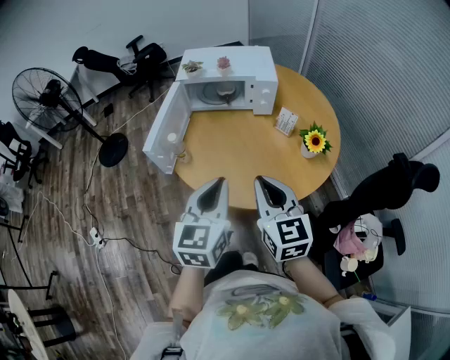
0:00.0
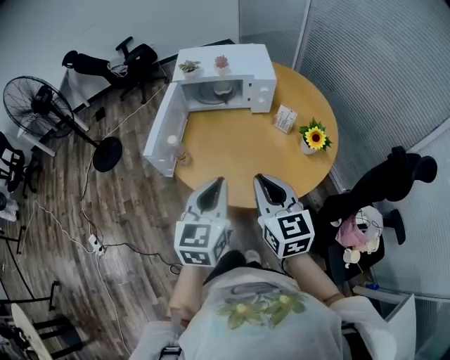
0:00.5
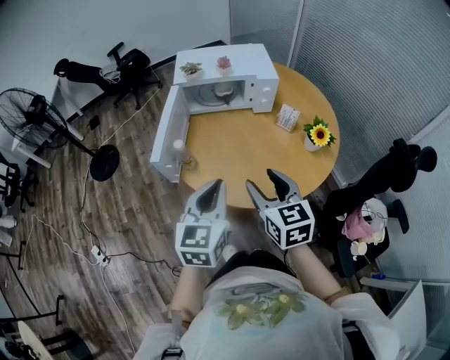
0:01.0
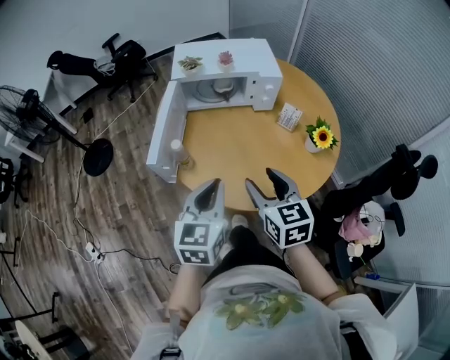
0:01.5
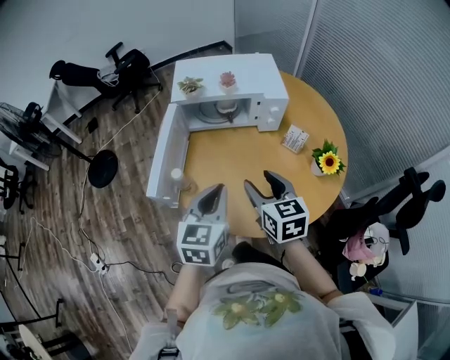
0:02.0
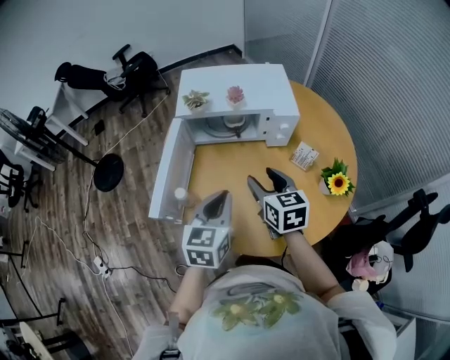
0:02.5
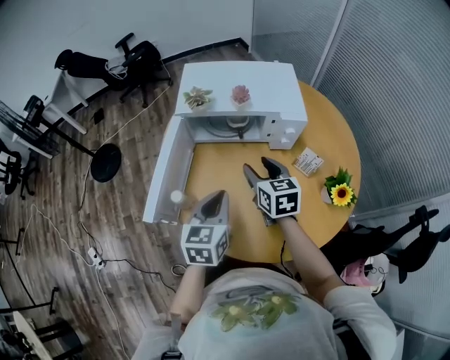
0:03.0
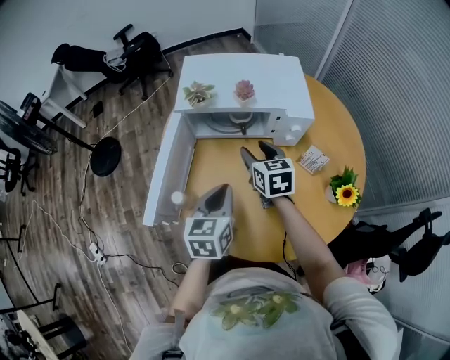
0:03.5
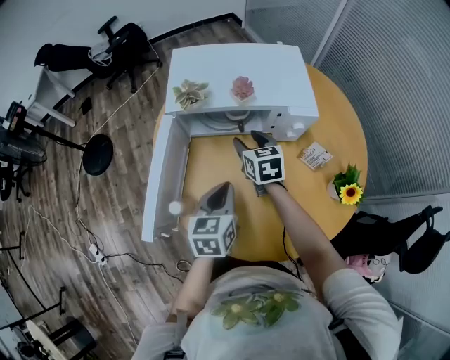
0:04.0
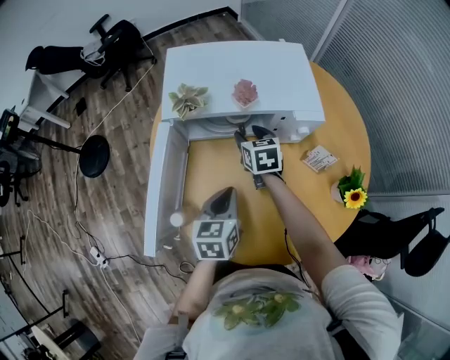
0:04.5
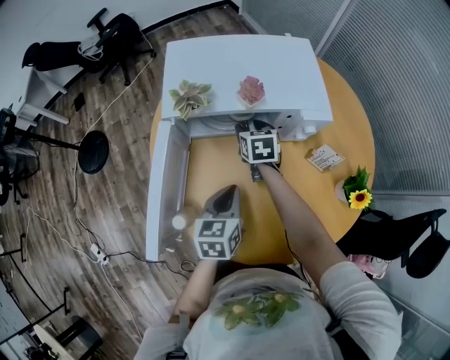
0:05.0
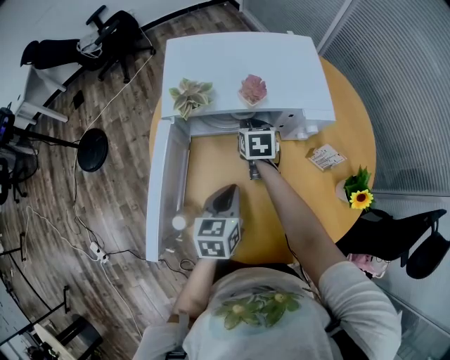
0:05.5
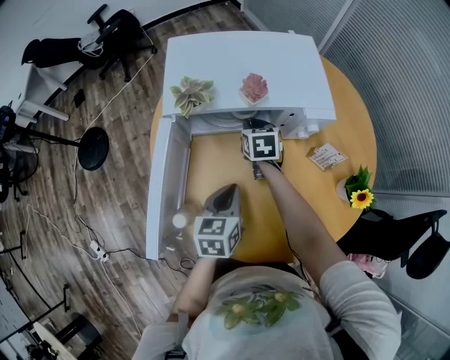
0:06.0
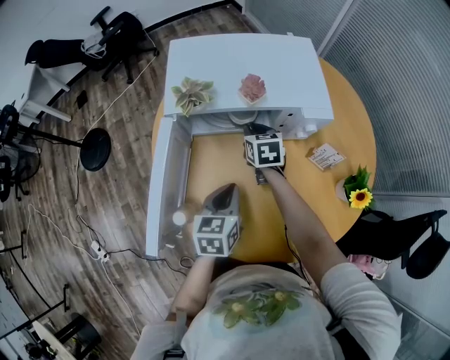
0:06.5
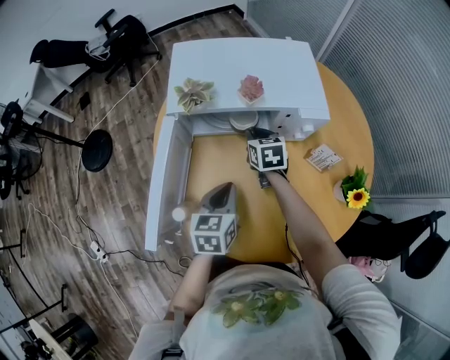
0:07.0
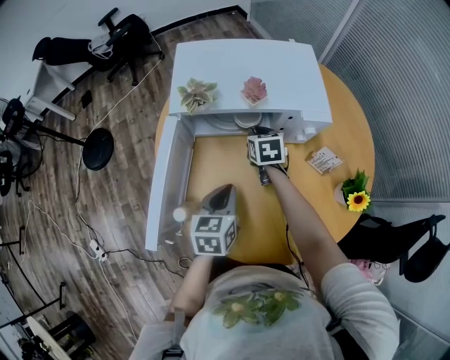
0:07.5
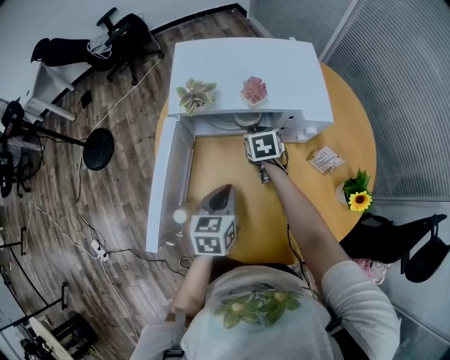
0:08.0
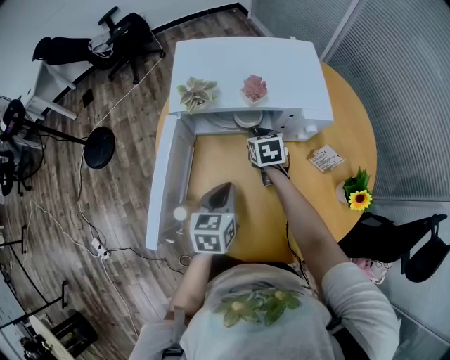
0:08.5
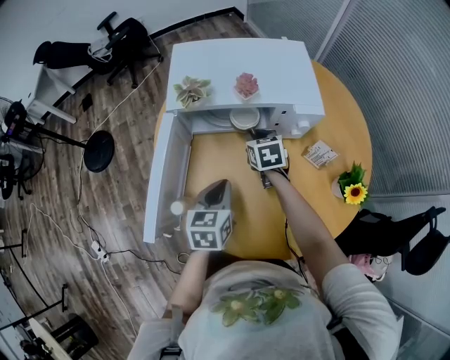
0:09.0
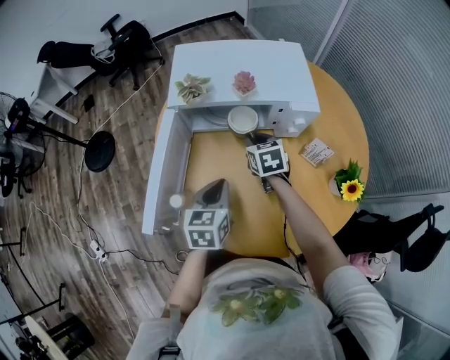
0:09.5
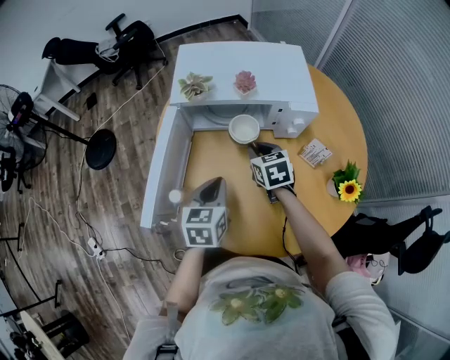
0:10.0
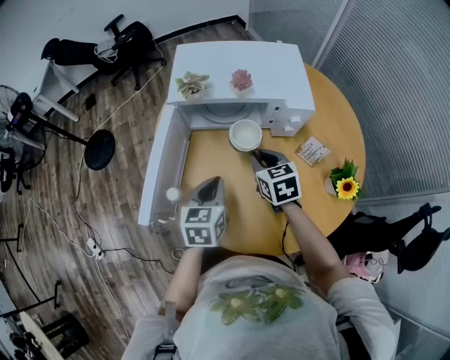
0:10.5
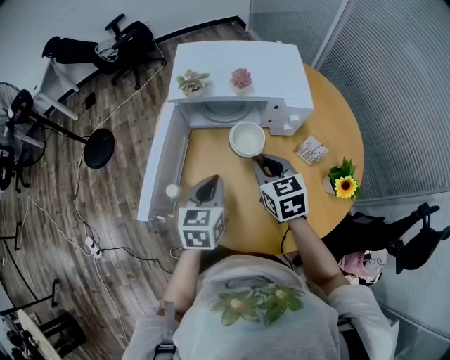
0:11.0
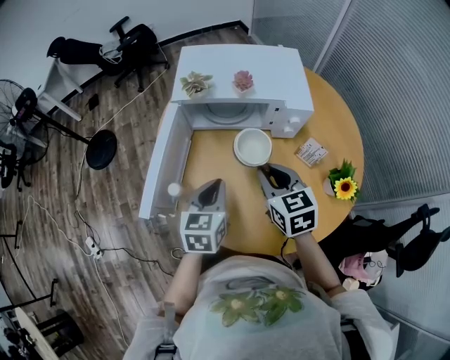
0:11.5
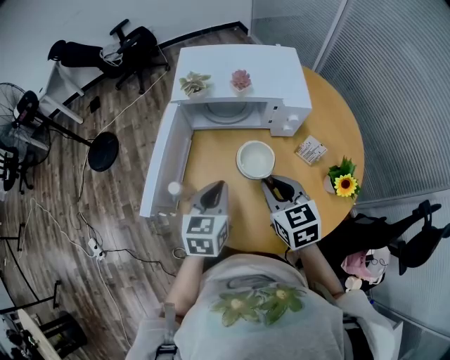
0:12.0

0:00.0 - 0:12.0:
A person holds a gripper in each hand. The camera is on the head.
0:00.0 - 0:02.0: The left gripper shifts approximately 15 cm forward and to the left. The right gripper heads forward and downward, covering roughly 20 cm, and opens its fingers.
0:02.0 - 0:04.0: The left gripper travels forward and downward by about 20 cm; the right gripper moves forward and downward, some 30 cm.
0:04.0 - 0:06.0: The left gripper goes approximately 5 cm downward. The right gripper heads forward and downward, covering approximately 10 cm, and closes up.
0:06.0 - 0:08.0: The grippers stay close to where they were, moving slightly.
0:08.0 - 0:10.0: The right gripper shifts approximately 15 cm backward and upward.
0:10.0 - 0:12.0: The left gripper shifts by roughly 5 cm. Meanwhile the right gripper is displaced backward and upward by some 20 cm.

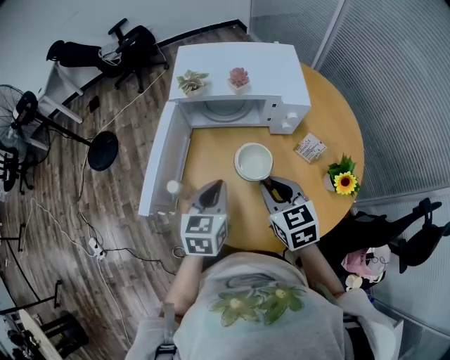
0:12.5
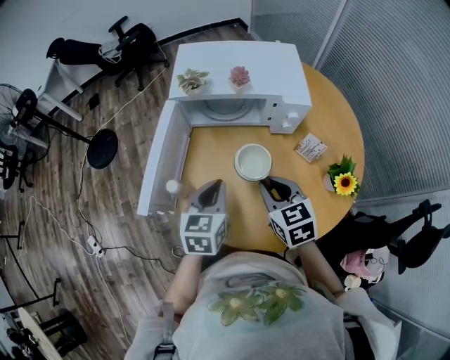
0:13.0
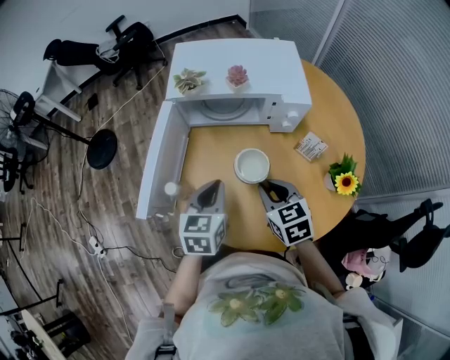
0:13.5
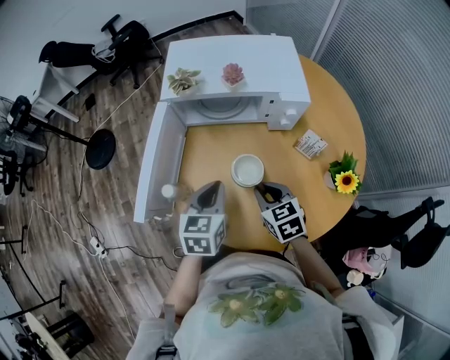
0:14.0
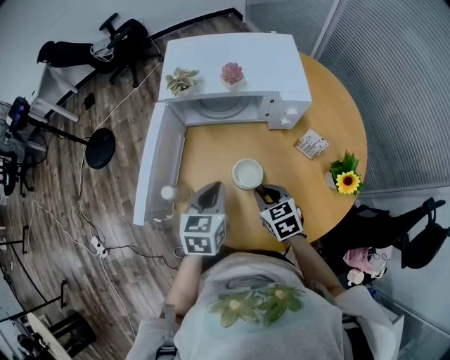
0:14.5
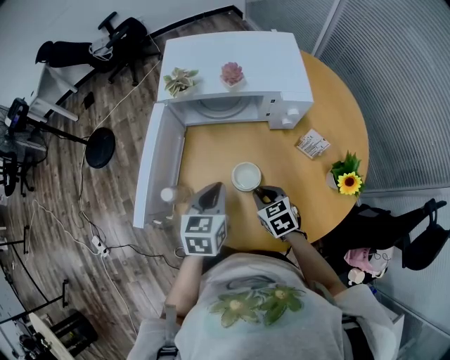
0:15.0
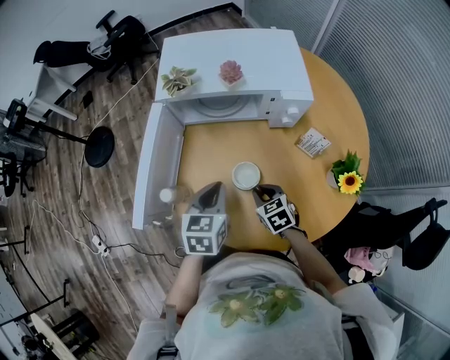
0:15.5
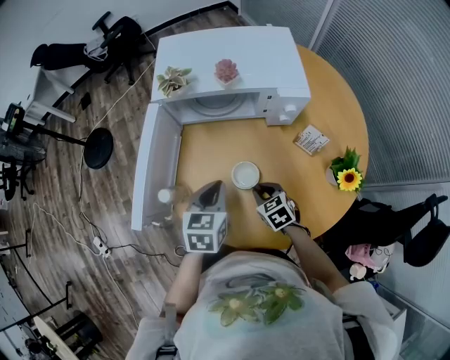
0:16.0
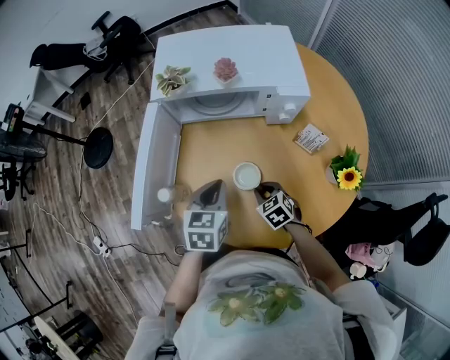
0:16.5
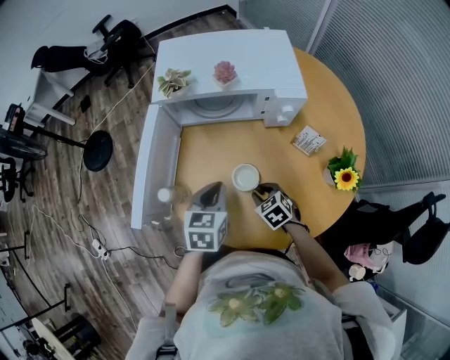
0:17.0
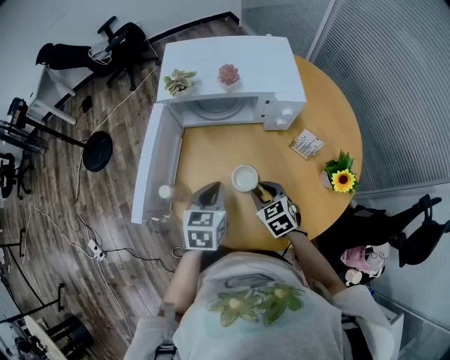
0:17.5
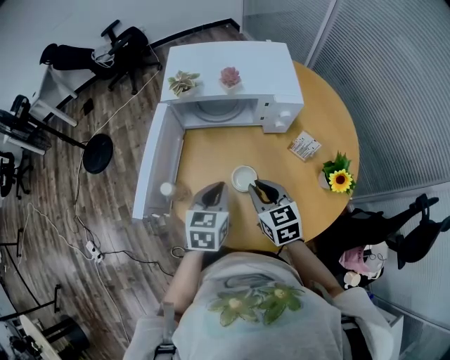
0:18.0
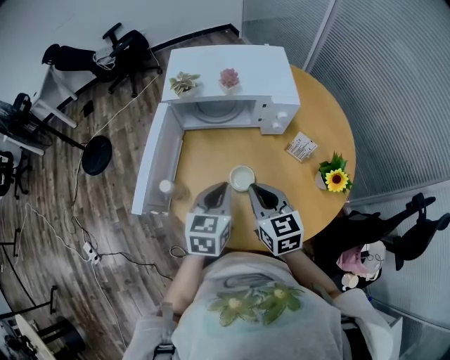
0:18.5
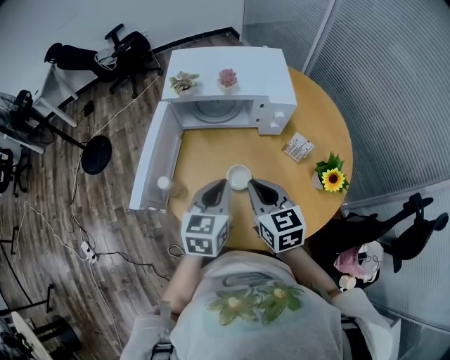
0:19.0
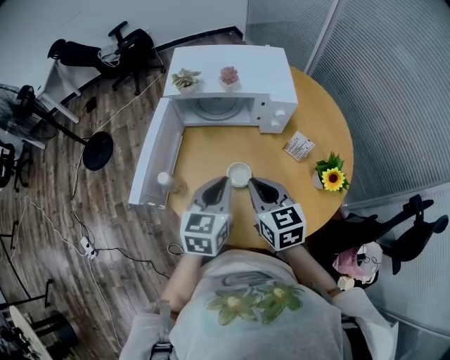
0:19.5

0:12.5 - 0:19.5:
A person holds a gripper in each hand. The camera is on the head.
0:12.5 - 0:14.5: The right gripper is displaced downward by roughly 15 cm.
0:14.5 - 0:16.0: The right gripper heads downward, covering some 10 cm.
0:16.0 - 0:17.5: The right gripper moves upward, about 5 cm.
0:17.5 - 0:19.5: The right gripper travels upward by approximately 15 cm, swivels some 20 degrees, and closes, while the left gripper is displaced upward by some 10 cm.

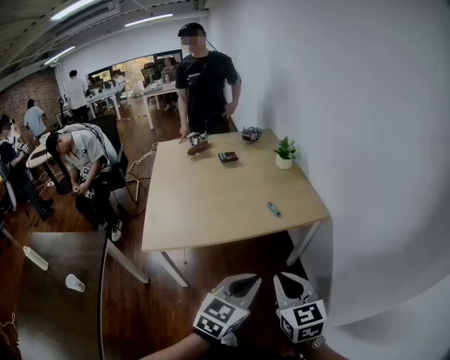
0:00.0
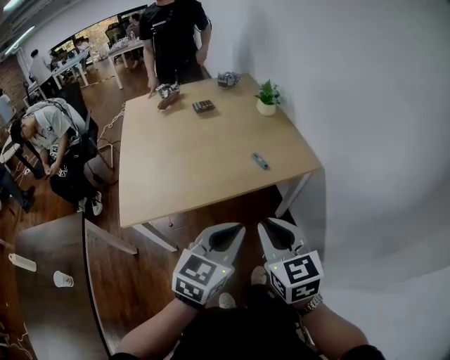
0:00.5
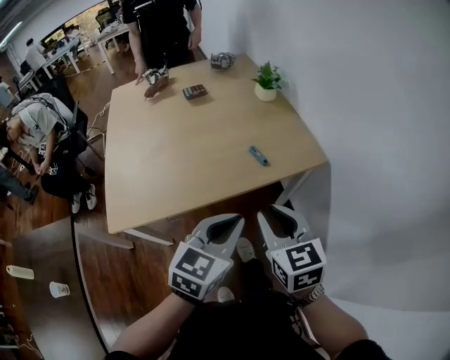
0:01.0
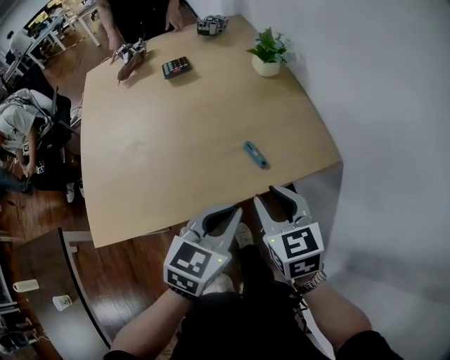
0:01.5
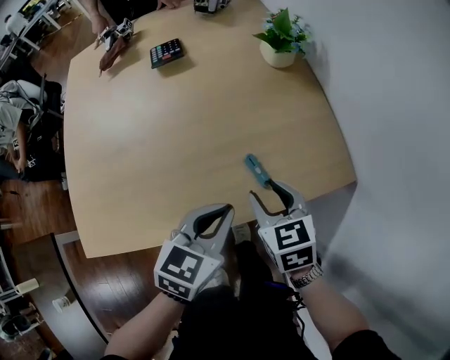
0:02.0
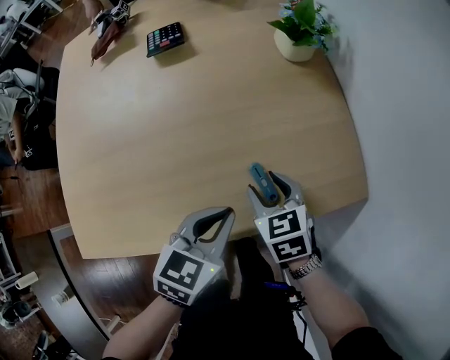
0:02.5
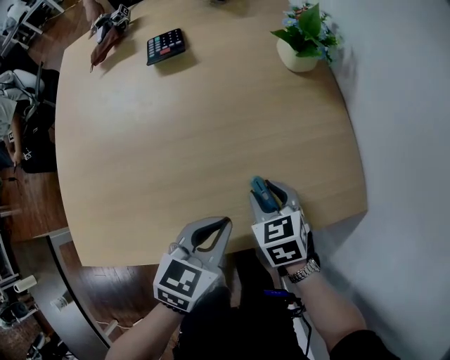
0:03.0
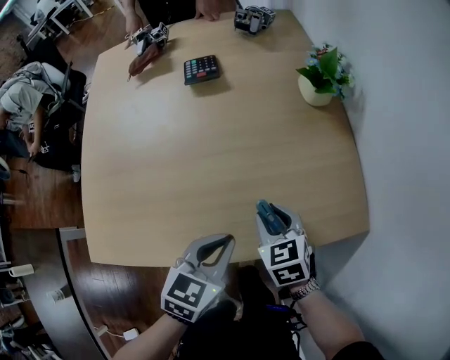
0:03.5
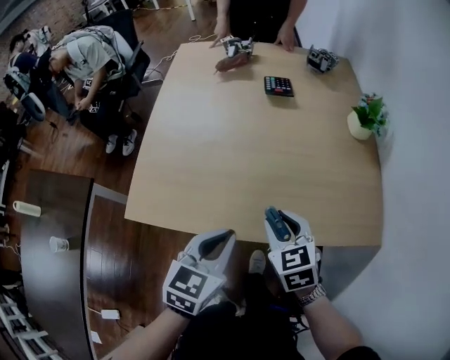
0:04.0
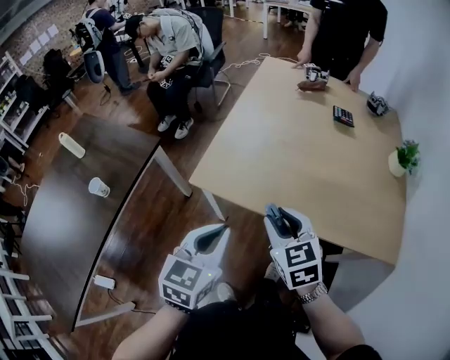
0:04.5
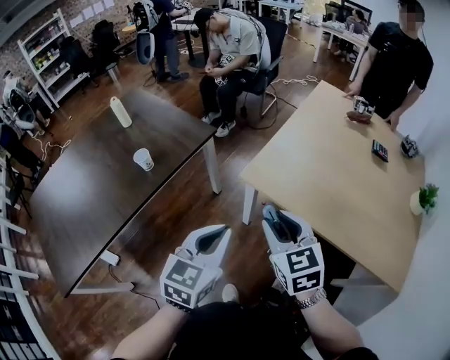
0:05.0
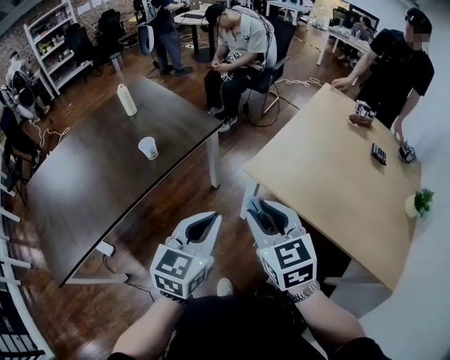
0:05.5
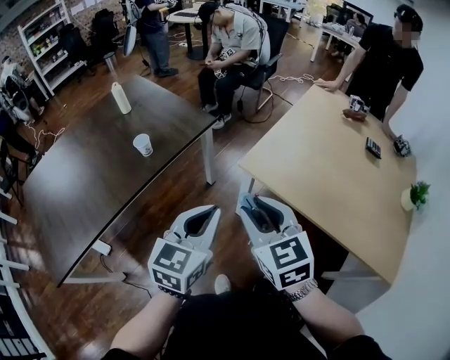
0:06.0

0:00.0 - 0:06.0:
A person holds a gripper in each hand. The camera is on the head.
0:00.0 - 0:02.0: Both grippers are carried forward, some 40 cm. Both grippers travel together downward, approximately 20 cm. The right gripper rotates roughly 20 degrees, and opens up.
0:02.0 - 0:04.0: The left gripper moves to the left and backward, some 20 cm, and turns by approximately 30 degrees, while the right gripper heads to the left, covering about 15 cm, and turns by roughly 20 degrees.
0:04.0 - 0:06.0: The pair of grippers is taken approximately 40 cm. The right gripper turns by roughly 40 degrees. Meanwhile the left gripper changes its angle by some 40 degrees.

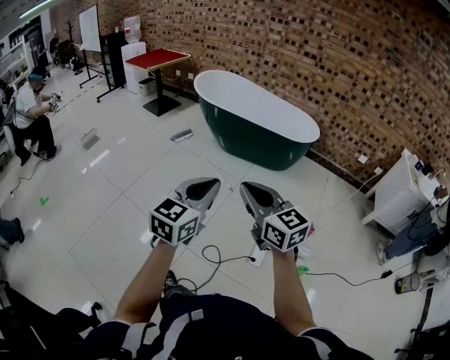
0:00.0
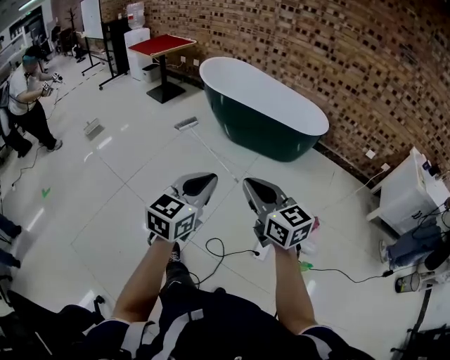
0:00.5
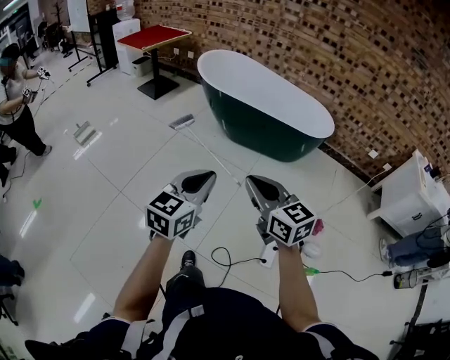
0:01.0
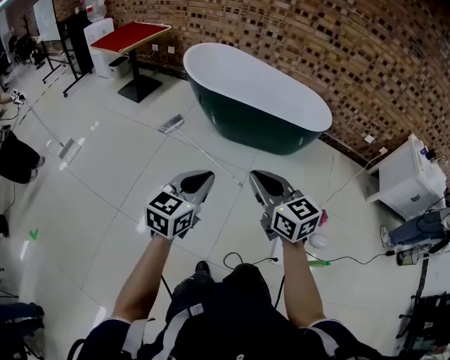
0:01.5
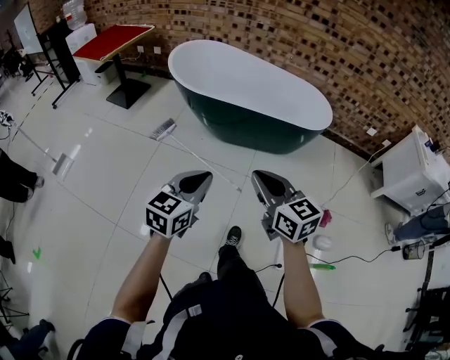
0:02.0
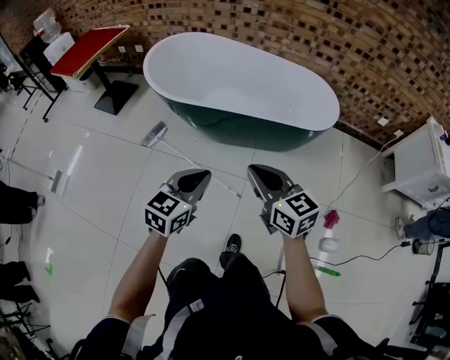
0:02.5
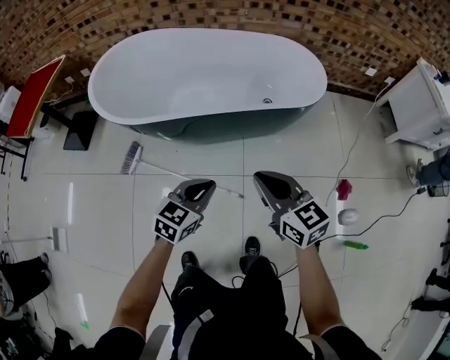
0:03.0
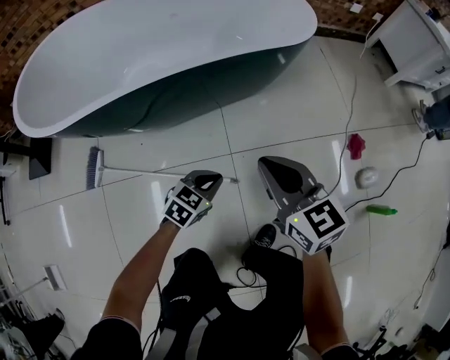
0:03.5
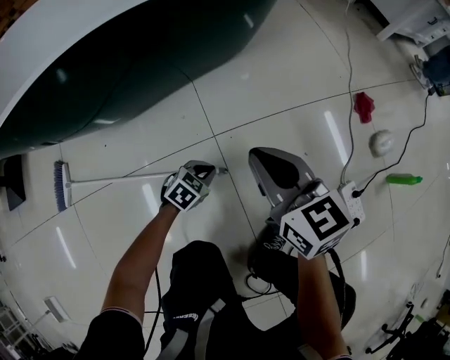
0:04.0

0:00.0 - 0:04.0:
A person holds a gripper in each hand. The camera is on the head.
0:00.0 - 0:02.0: The two grippers travel together, forward, roughly 40 cm.
0:02.0 - 0:04.0: The left gripper heads downward, covering approximately 80 cm, and angles its fingers downward, by about 40 degrees, while the right gripper moves downward, some 50 cm, and swivels about 40 degrees.
